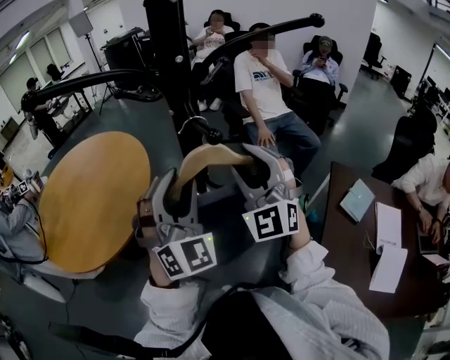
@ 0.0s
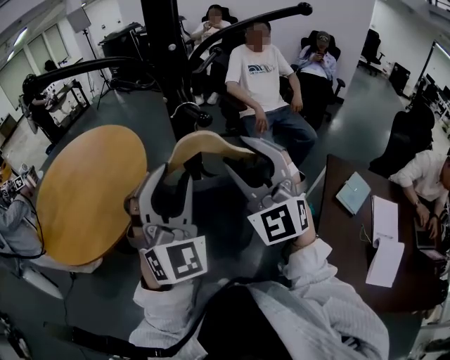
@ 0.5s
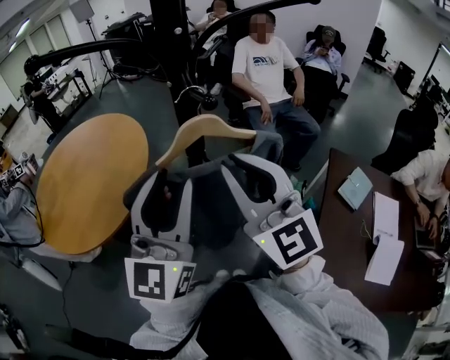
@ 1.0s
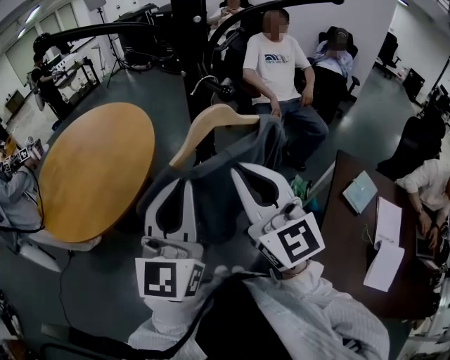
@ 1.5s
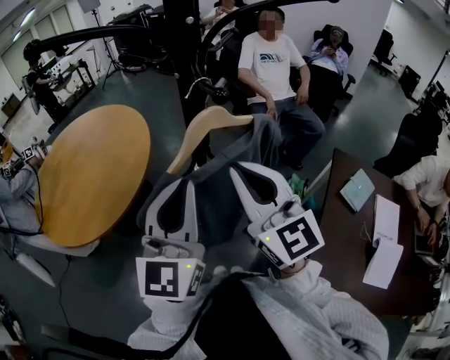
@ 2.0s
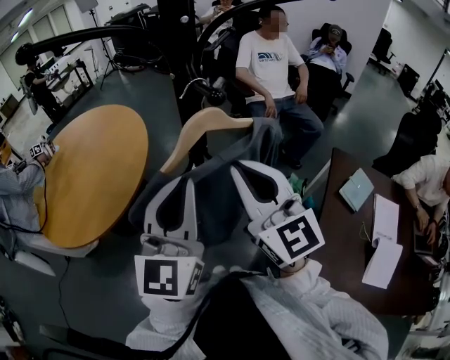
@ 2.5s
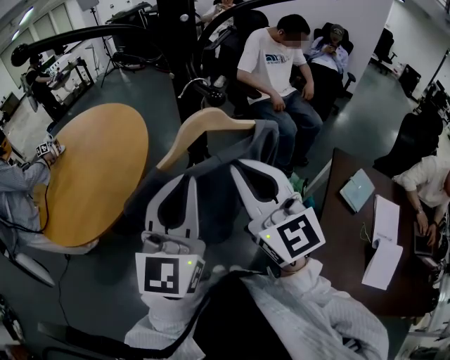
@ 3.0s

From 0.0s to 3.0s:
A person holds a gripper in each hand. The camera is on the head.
From 0.0s to 1.5s: Both grippers travel together backward, some 10 cm. The left gripper rolls counterclockwise, seen from behind, by about 50 degrees, and closes up; the right gripper twists roughly 40 degrees clockwise, seen from behind, and closes.
From 1.5s to 3.0s: The grippers make only small movements.

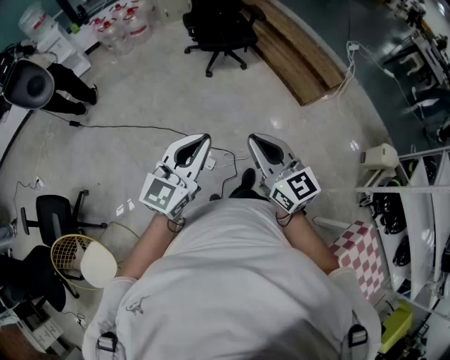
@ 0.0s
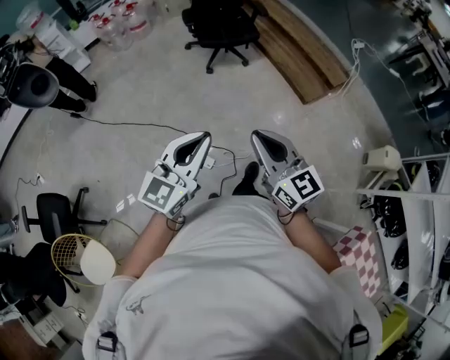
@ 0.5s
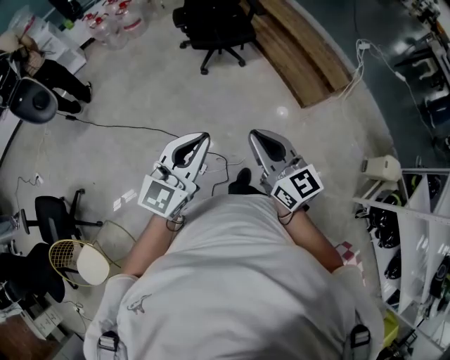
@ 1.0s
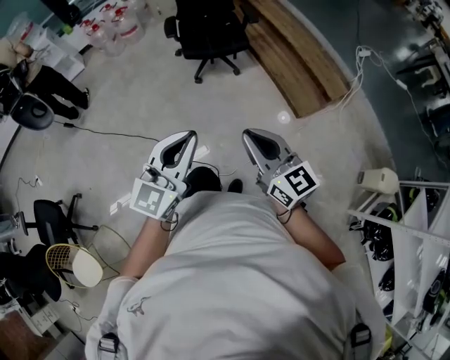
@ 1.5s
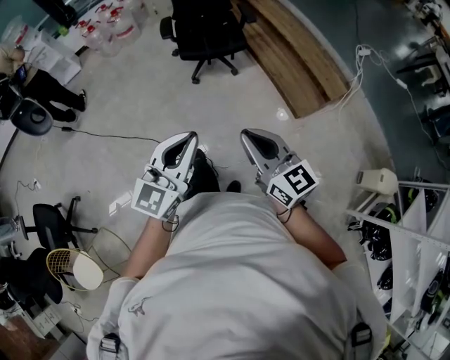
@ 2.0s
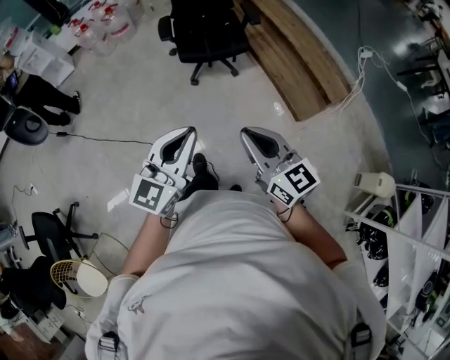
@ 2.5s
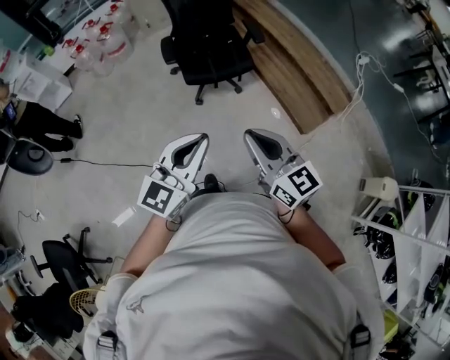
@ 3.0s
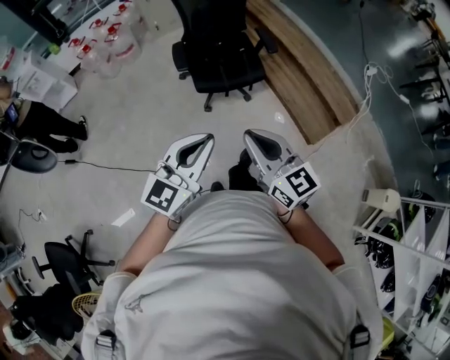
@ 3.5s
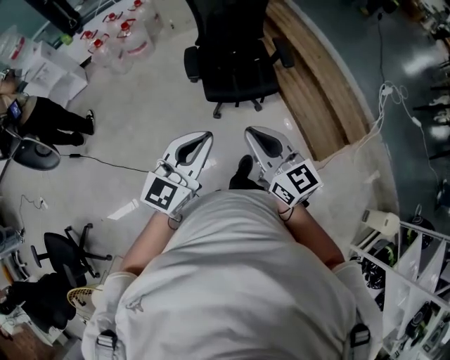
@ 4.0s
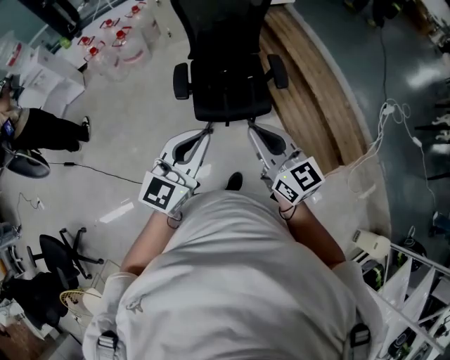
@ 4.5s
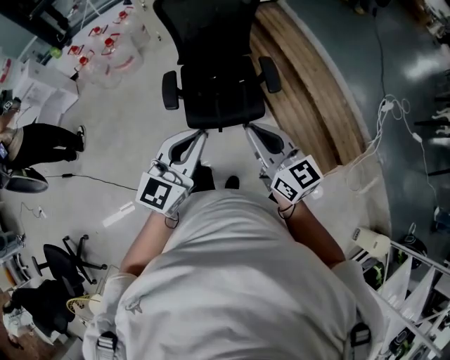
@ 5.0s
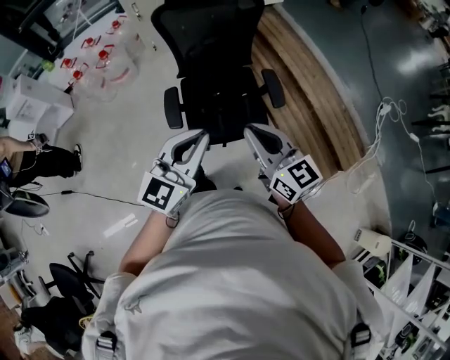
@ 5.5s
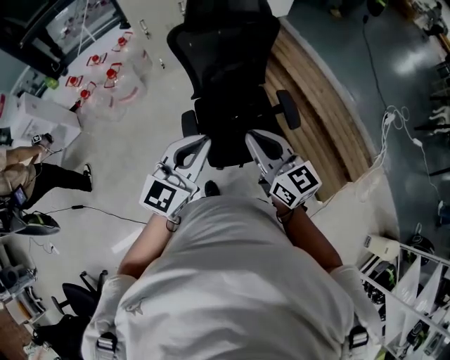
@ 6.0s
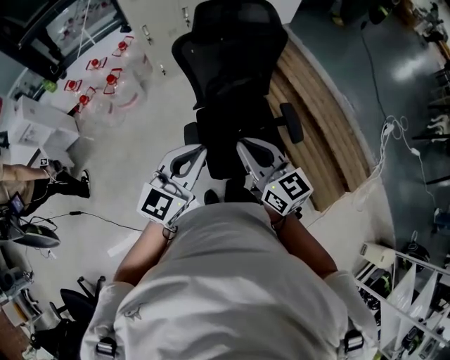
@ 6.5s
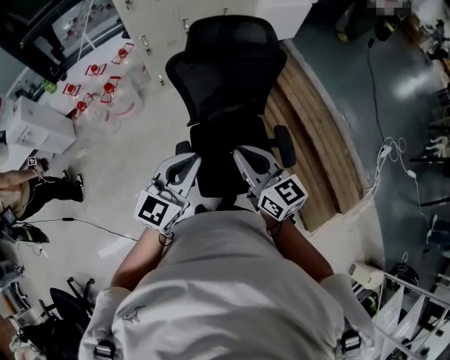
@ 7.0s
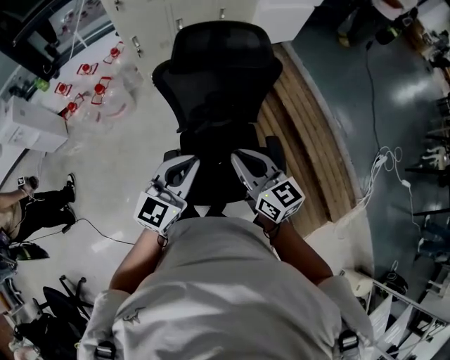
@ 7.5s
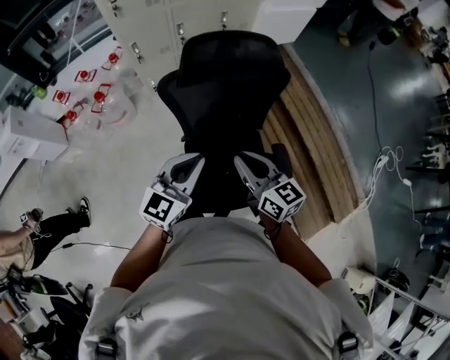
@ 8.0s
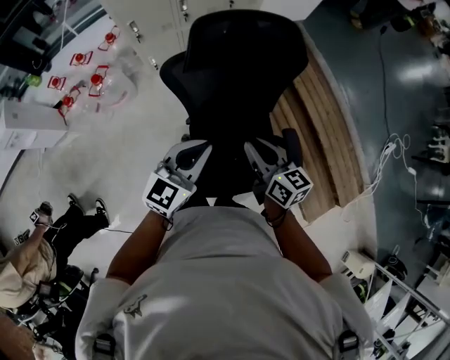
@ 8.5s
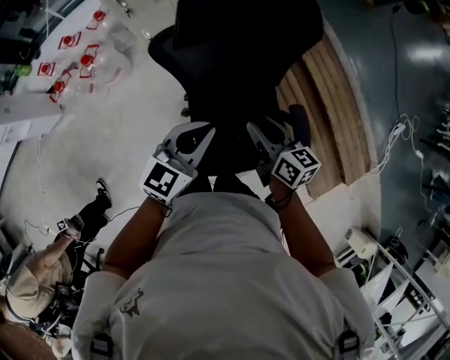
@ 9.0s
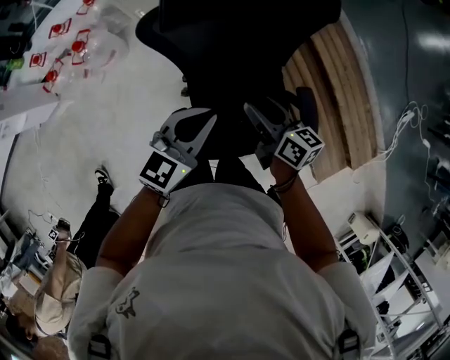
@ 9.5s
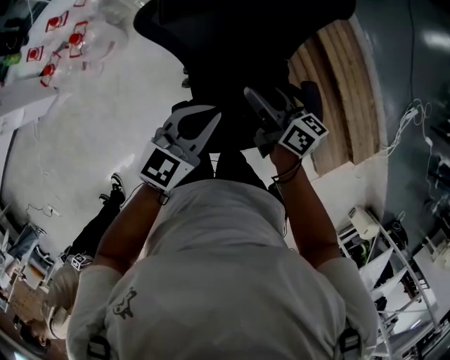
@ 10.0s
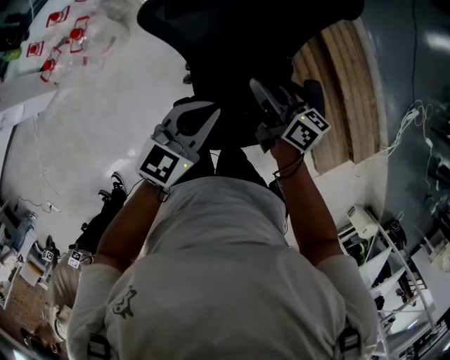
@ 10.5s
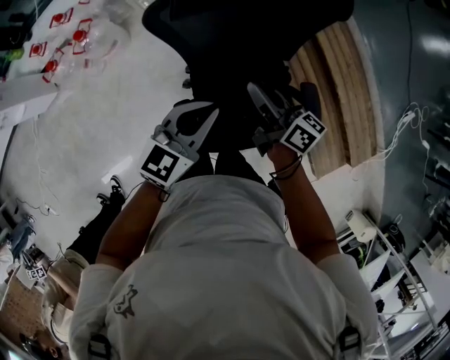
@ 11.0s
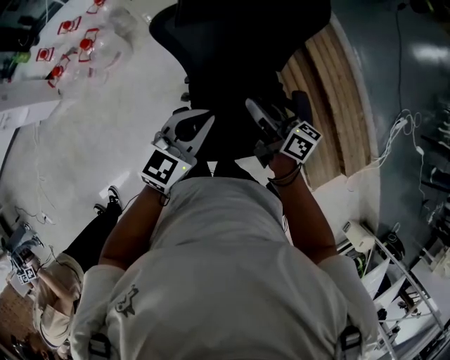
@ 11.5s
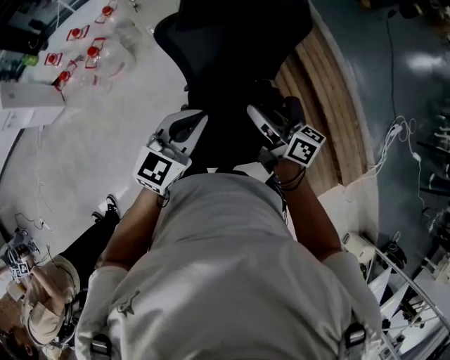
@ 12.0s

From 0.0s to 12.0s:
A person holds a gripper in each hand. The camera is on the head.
From 0.0s to 2.0s: The grippers both shift forward and to the right by roughly 30 cm.
From 2.0s to 4.0s: The right gripper moves forward and to the left, approximately 40 cm. The left gripper is displaced forward by roughly 35 cm.
From 4.0s to 6.0s: The grippers both shift forward by about 40 cm.
From 6.0s to 8.0s: Both grippers travel together forward, approximately 25 cm.
From 8.0s to 10.0s: Both grippers travel together downward and forward, about 15 cm. The right gripper rotates about 30 degrees, and opens.
From 10.0s to 12.0s: The grippers both shift upward and backward by roughly 10 cm. The right gripper closes its fingers.

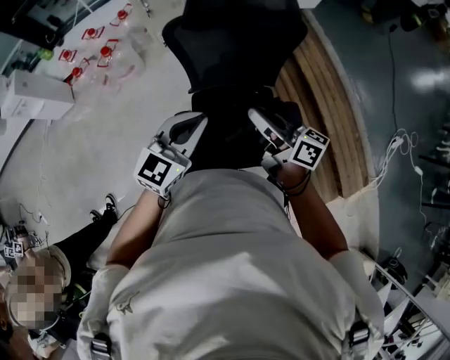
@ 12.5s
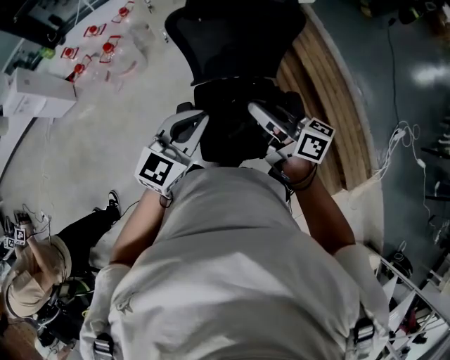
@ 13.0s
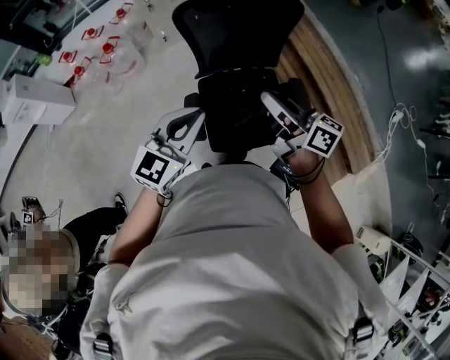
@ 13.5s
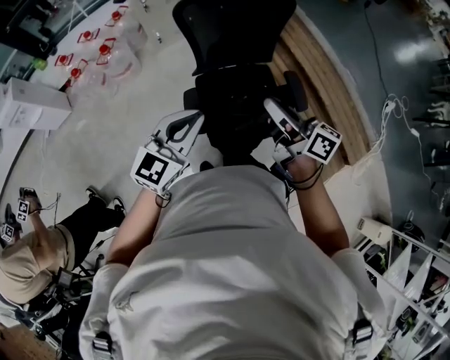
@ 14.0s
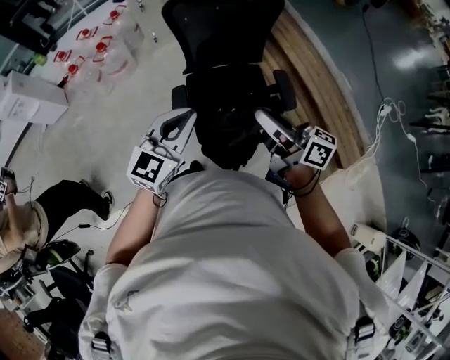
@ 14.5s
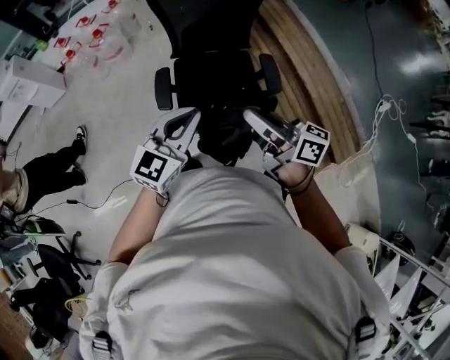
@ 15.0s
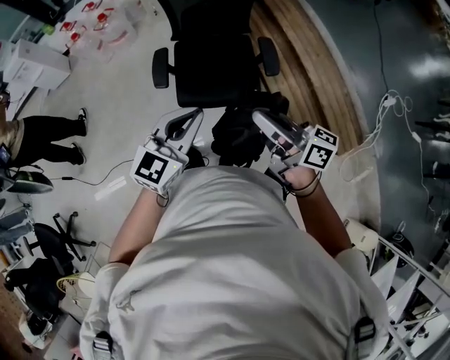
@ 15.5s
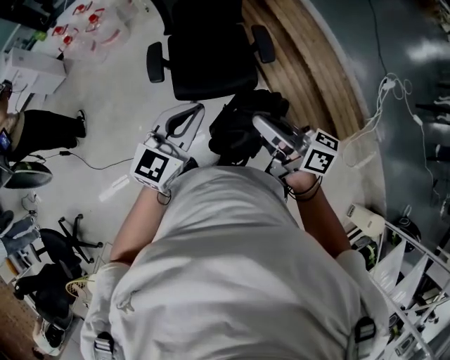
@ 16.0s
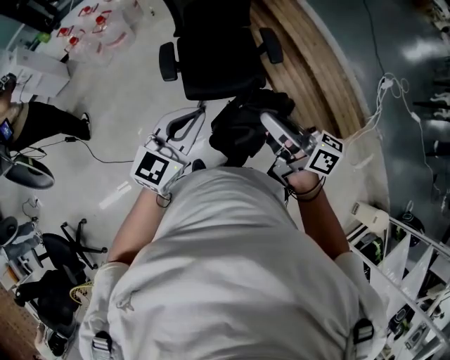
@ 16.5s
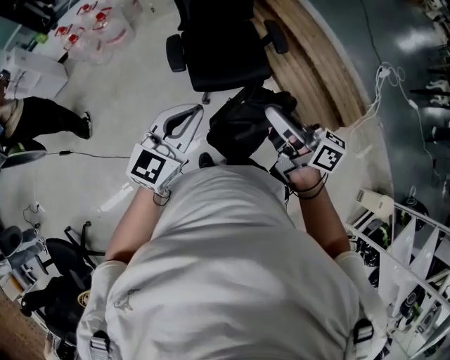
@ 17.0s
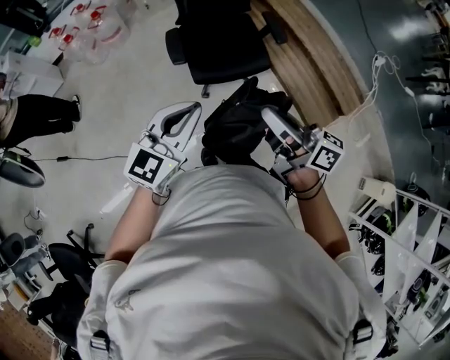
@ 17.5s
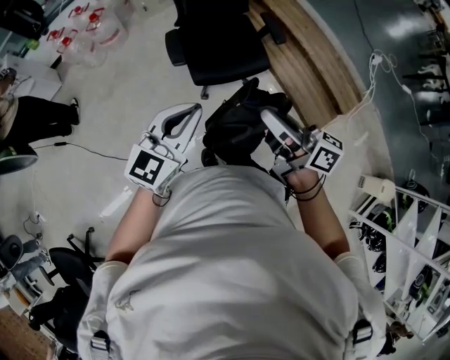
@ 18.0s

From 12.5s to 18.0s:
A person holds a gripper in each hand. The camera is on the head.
From 12.5s to 14.5s: Both grippers travel together backward, roughly 20 cm.
From 14.5s to 16.0s: The grippers both shift backward and to the right by some 25 cm.
From 16.0s to 18.0s: The two grippers go approximately 20 cm to the left and backward.

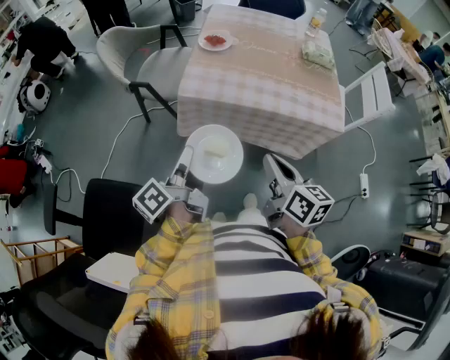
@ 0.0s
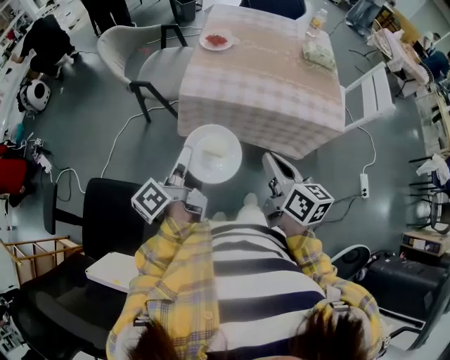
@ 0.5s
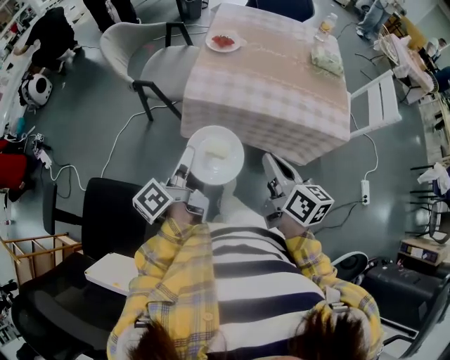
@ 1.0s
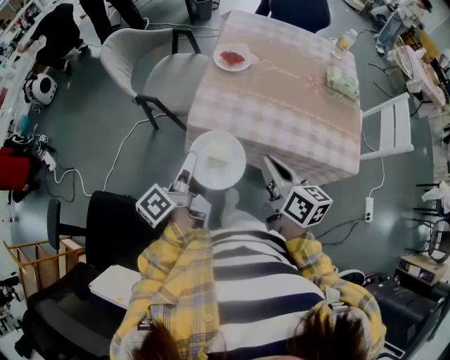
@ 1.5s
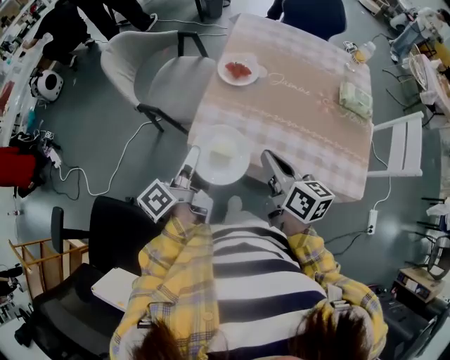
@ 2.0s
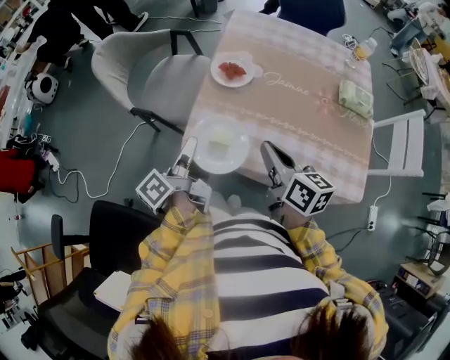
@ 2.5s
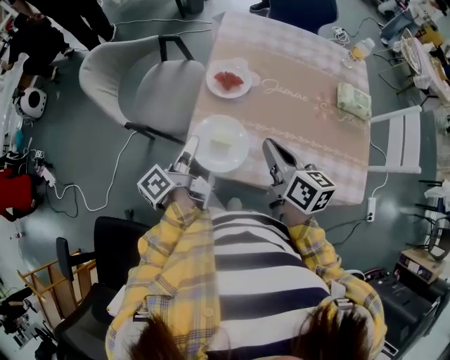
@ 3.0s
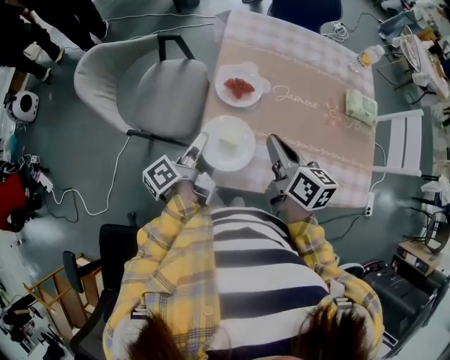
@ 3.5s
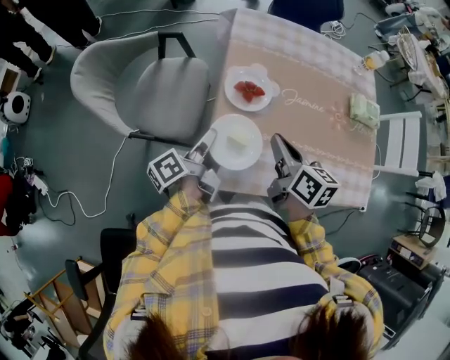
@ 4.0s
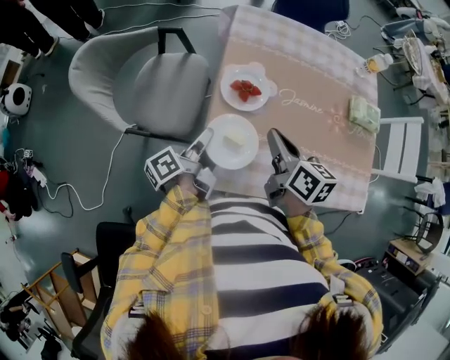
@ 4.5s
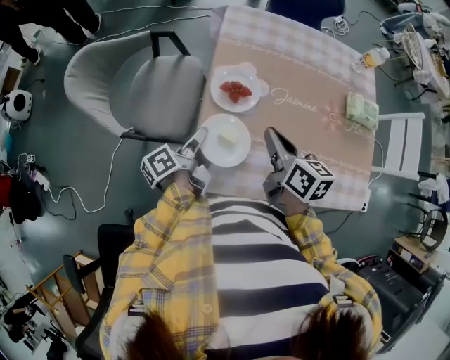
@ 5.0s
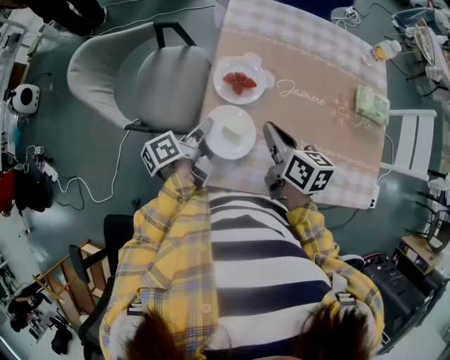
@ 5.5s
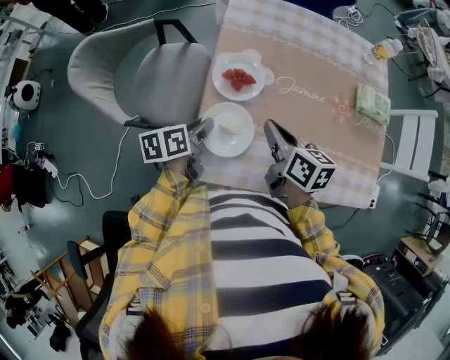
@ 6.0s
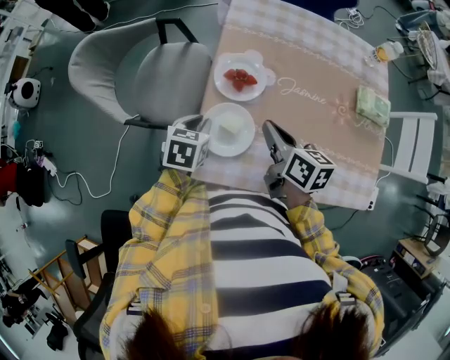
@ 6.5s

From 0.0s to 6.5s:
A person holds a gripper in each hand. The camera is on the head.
From 0.0s to 2.0s: Both grippers travel together forward, about 20 cm.
From 2.0s to 4.5s: The right gripper goes some 20 cm forward, while the left gripper moves forward and downward, roughly 20 cm, and rotates roughly 20 degrees.
From 4.5s to 6.5s: The left gripper twists some 70 degrees clockwise, seen from behind.
